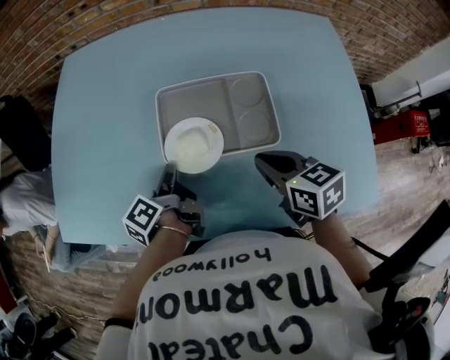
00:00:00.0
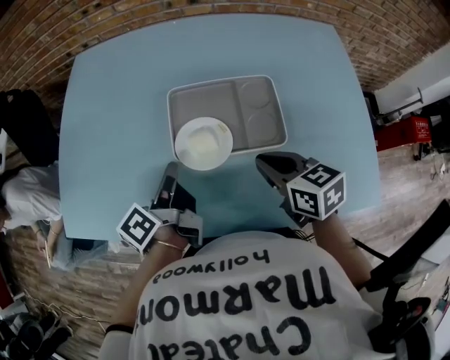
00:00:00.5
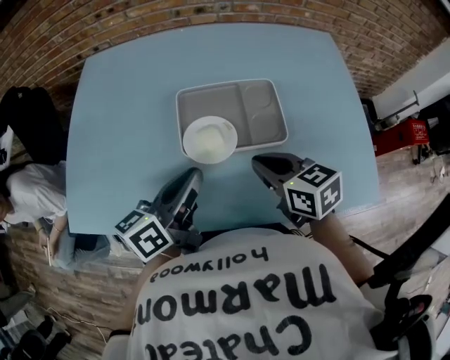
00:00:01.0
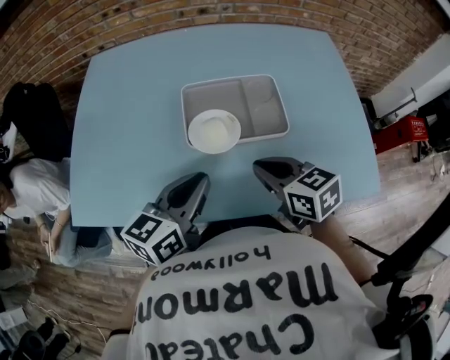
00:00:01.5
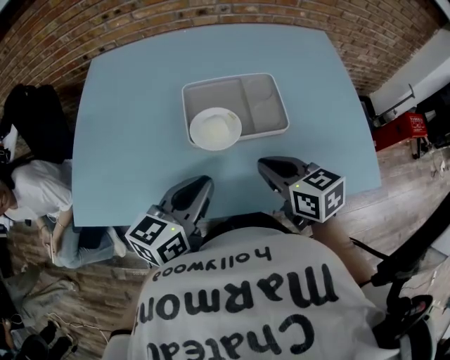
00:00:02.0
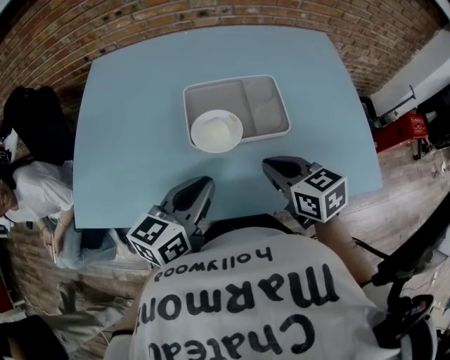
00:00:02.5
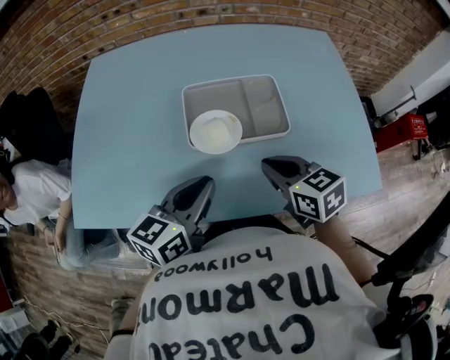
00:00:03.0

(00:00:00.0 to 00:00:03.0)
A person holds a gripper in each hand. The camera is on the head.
00:00:00.0 - 00:00:01.5: The right gripper ends up about 10 cm from where it was.

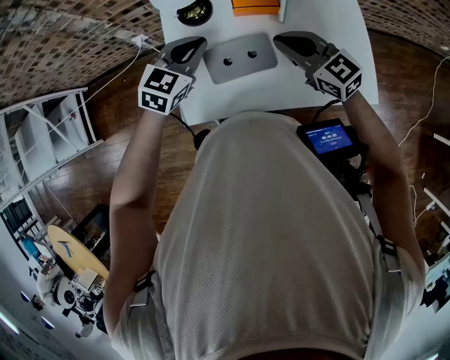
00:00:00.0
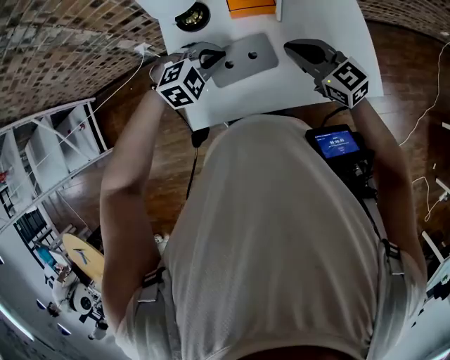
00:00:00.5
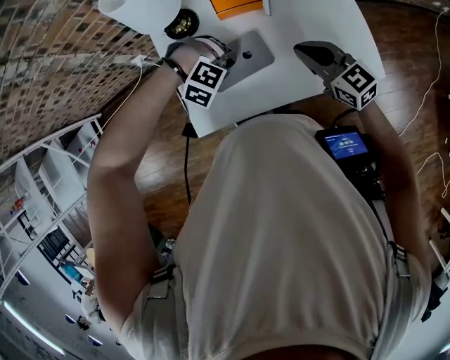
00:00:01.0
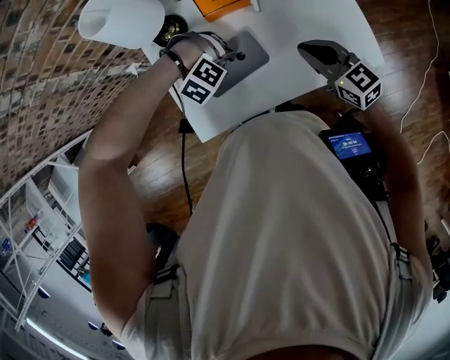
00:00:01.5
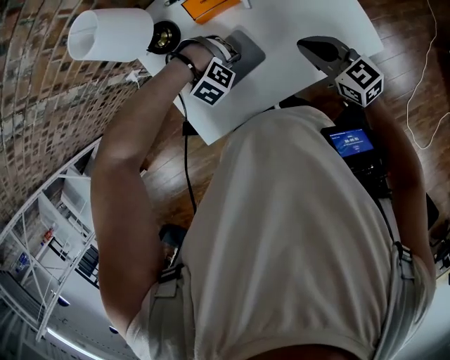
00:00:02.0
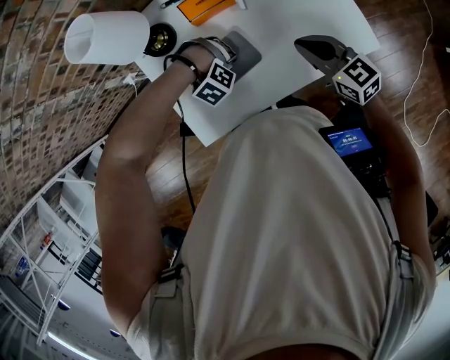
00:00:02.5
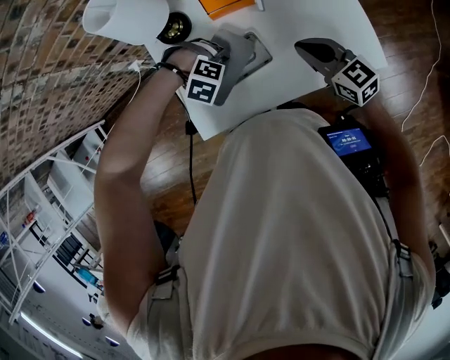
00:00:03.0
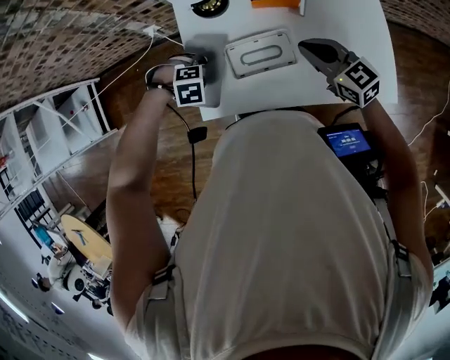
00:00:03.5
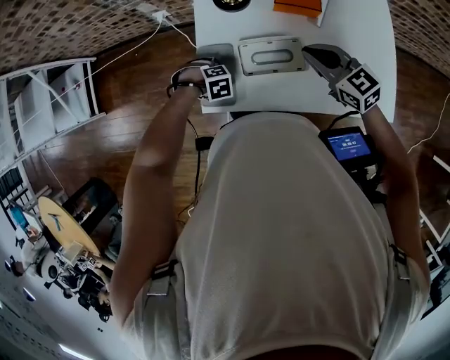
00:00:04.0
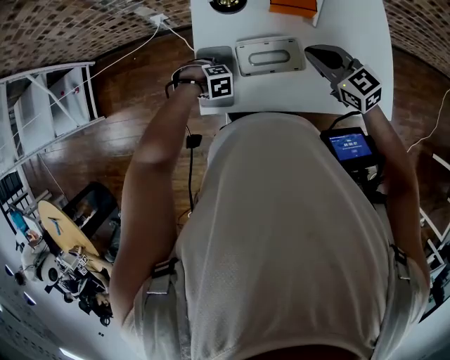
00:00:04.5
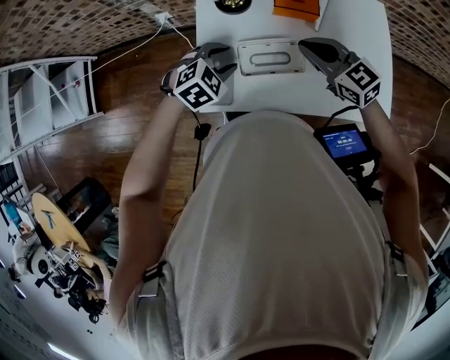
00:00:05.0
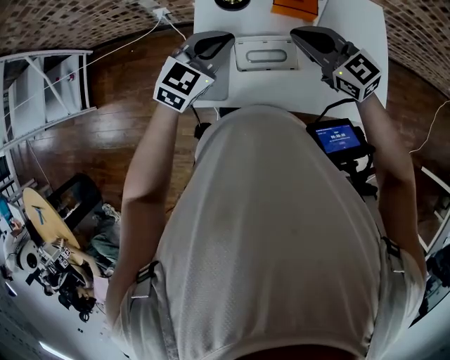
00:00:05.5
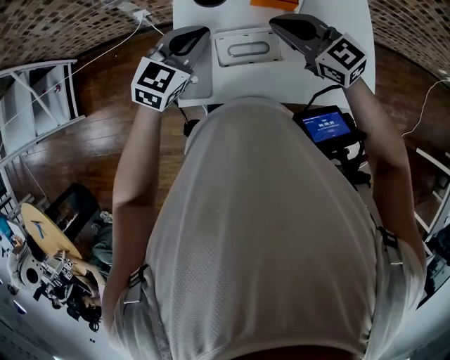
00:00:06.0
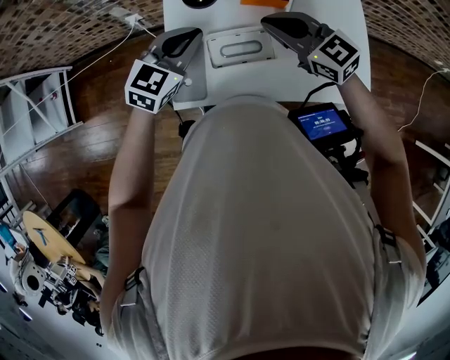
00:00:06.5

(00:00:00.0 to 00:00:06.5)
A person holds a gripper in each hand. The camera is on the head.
00:00:00.0 - 00:00:02.0: The right gripper moves roughly 15 cm, and rotates approximately 30 degrees. Meanwhile the left gripper moves downward, about 20 cm, tips its fingers downward by some 60 degrees, and opens up.
00:00:02.0 - 00:00:04.5: The left gripper shifts by some 20 cm, and rolls counterclockwise, seen from behind, by roughly 80 degrees; the right gripper shifts by roughly 15 cm, and swivels some 30 degrees.
00:00:04.5 - 00:00:06.5: The right gripper travels upward by some 10 cm. Meanwhile the left gripper travels upward by some 30 cm, tips its fingers upward by some 60 degrees, and closes.

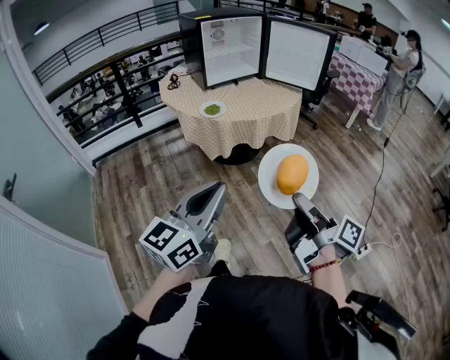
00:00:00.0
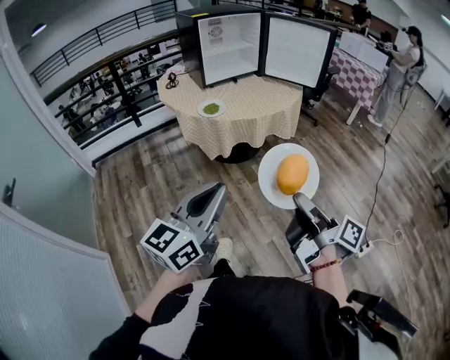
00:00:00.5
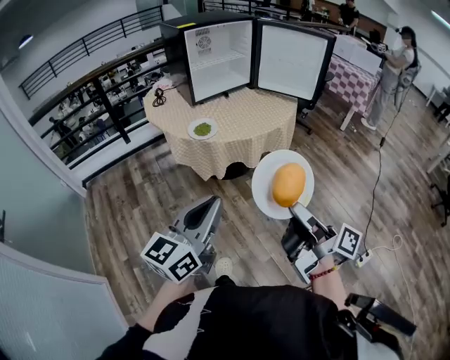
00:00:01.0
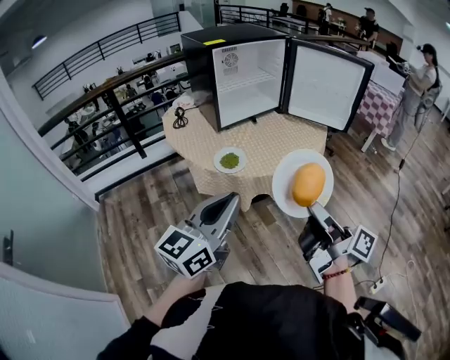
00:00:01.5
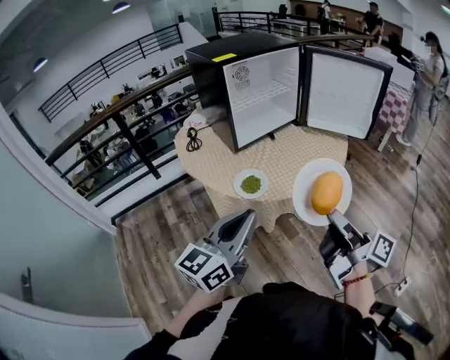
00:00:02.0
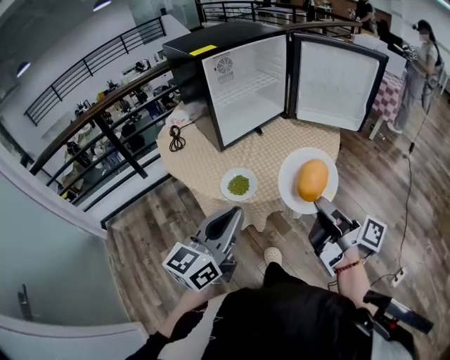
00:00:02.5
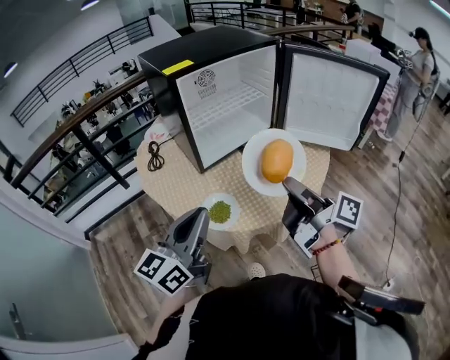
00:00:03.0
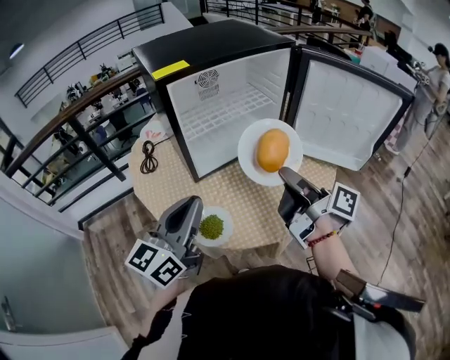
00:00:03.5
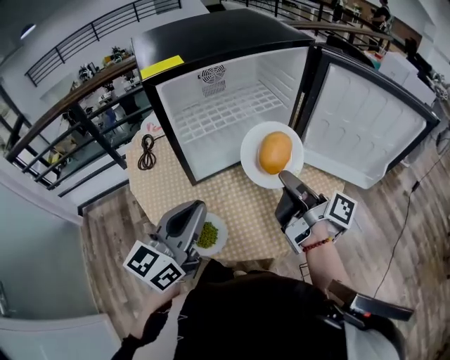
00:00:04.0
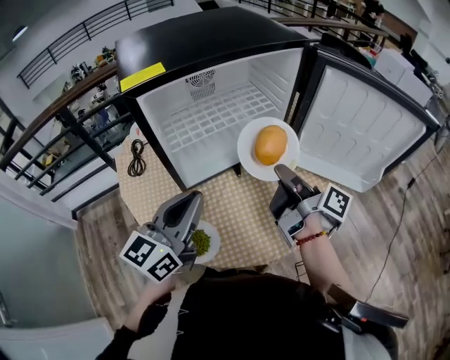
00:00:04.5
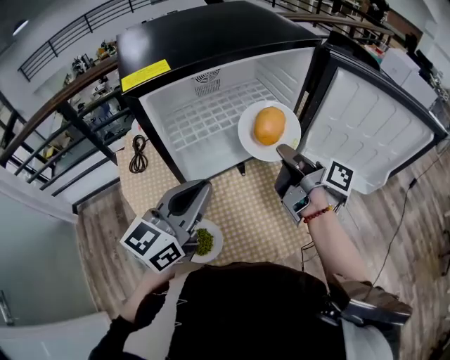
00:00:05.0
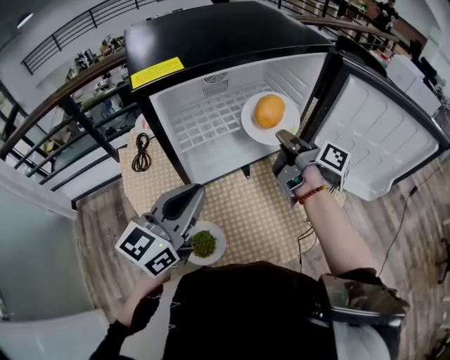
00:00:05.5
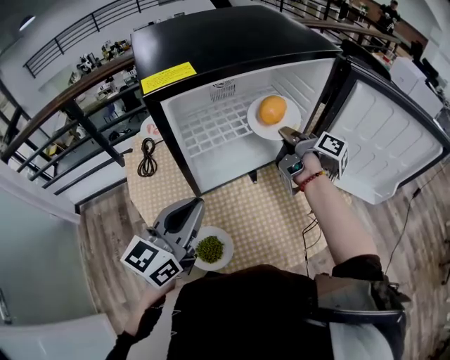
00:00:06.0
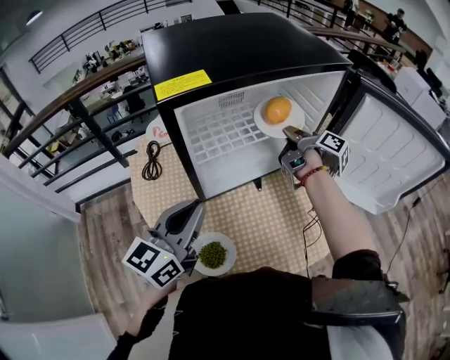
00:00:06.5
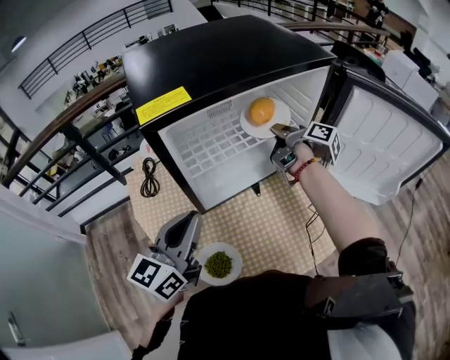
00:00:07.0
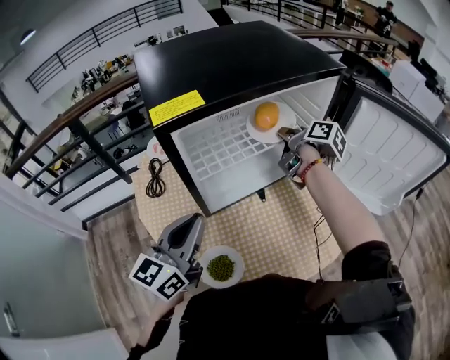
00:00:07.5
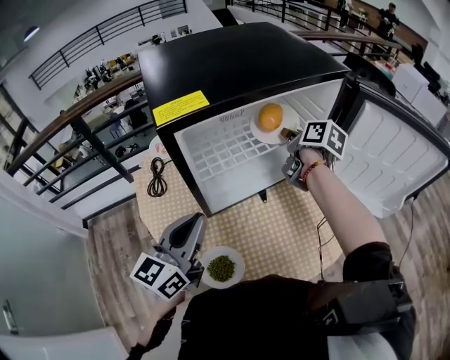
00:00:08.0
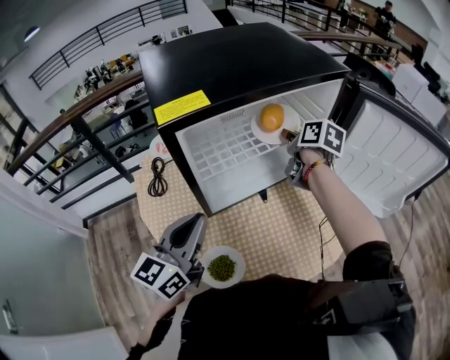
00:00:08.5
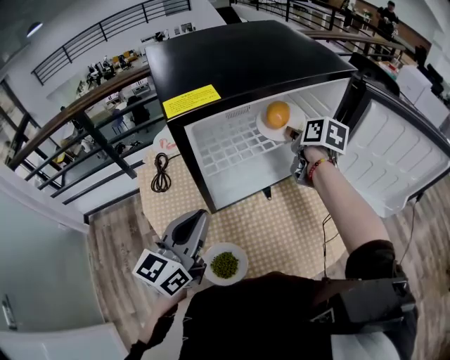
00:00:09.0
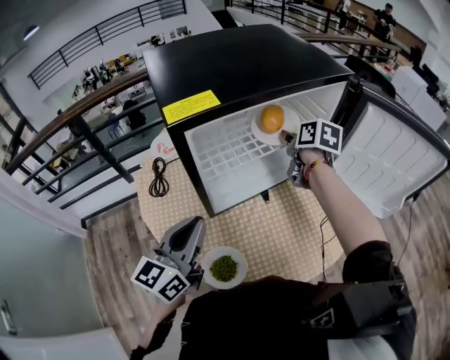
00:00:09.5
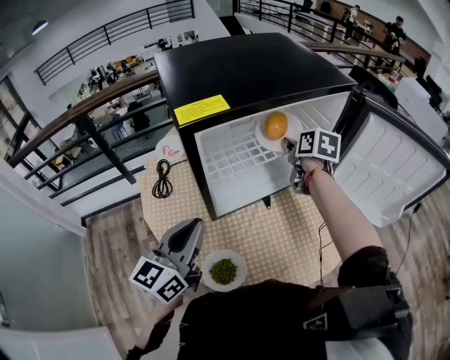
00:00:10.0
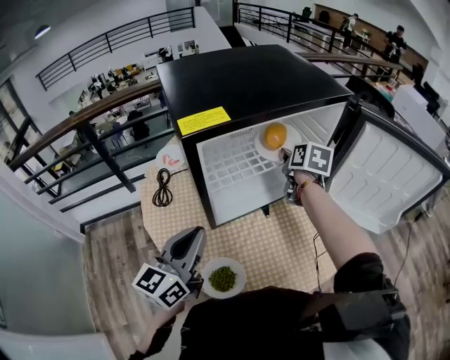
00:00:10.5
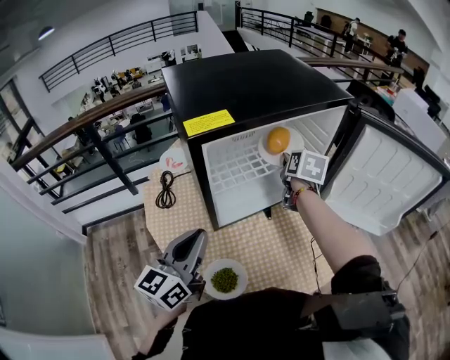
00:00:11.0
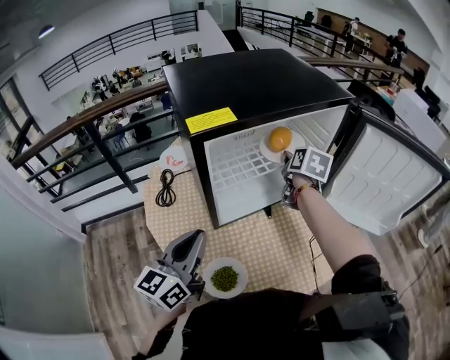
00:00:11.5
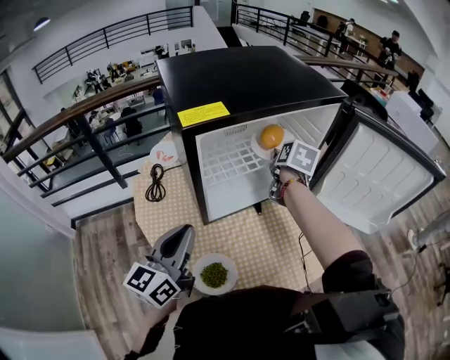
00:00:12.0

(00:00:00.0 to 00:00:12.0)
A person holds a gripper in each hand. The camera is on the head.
00:00:00.0 - 00:00:02.0: Both grippers travel together forward, about 35 cm.
00:00:02.0 - 00:00:04.0: Both grippers move forward, approximately 35 cm.
00:00:04.0 - 00:00:06.0: The right gripper goes some 20 cm forward. The left gripper moves forward, some 5 cm.
00:00:06.0 - 00:00:08.0: The right gripper is displaced forward by some 5 cm, and rotates some 40 degrees.
00:00:08.0 - 00:00:10.0: The right gripper rotates roughly 20 degrees, and opens up.
00:00:10.0 - 00:00:12.0: The grippers make only small movements.

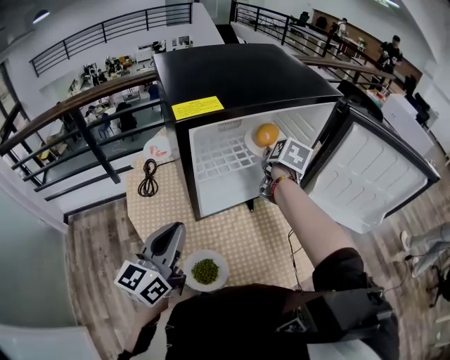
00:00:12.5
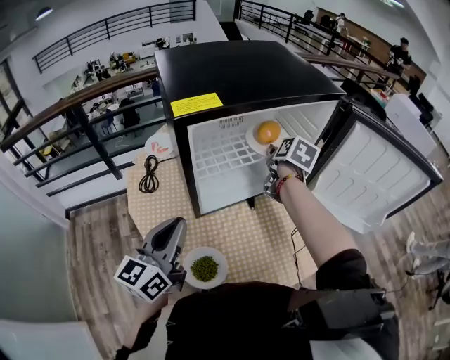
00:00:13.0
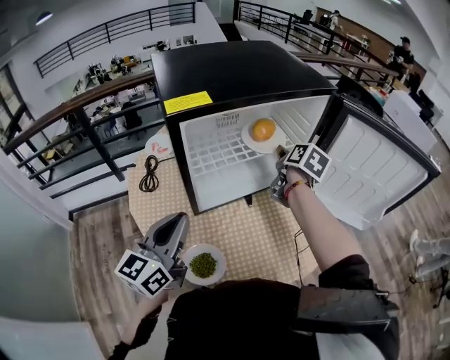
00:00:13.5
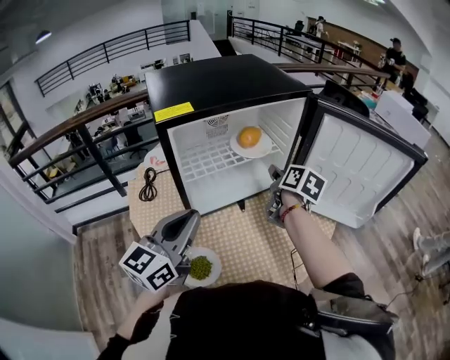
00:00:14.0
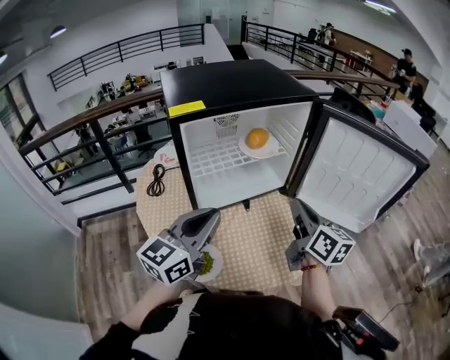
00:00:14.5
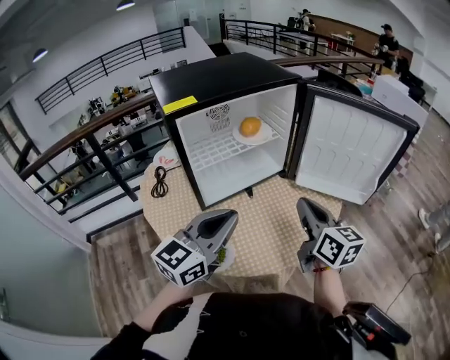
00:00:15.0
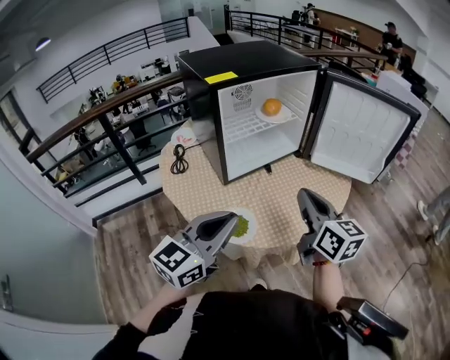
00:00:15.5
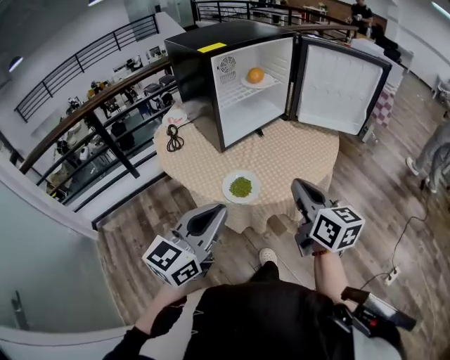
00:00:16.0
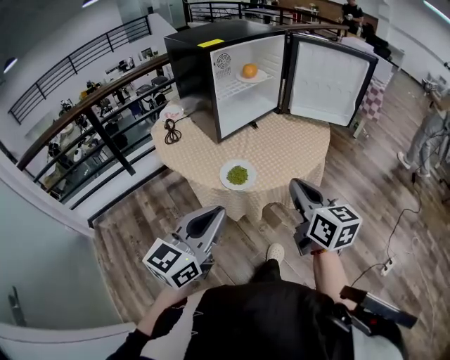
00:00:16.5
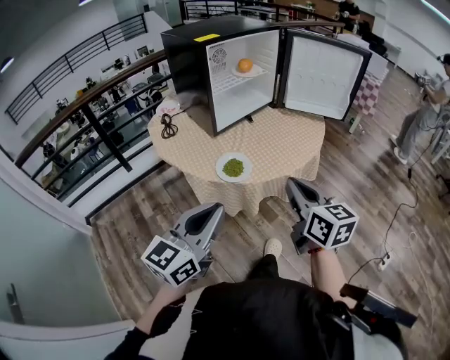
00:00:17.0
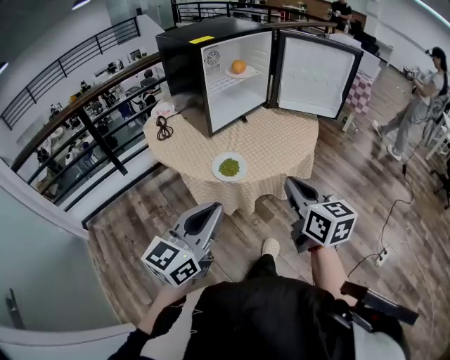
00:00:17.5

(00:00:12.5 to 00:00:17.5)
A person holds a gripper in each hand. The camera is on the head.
00:00:12.5 - 00:00:15.0: The right gripper moves backward, about 30 cm, swivels some 40 degrees, and closes, while the left gripper goes about 15 cm to the right, and rotates roughly 30 degrees.
00:00:15.0 - 00:00:17.5: The grippers both shift backward by some 35 cm.
